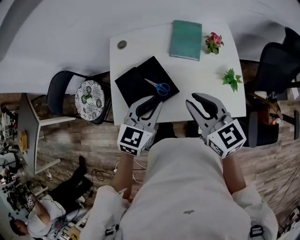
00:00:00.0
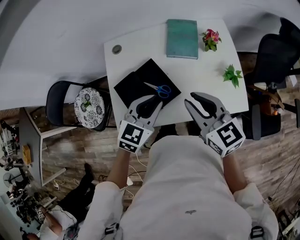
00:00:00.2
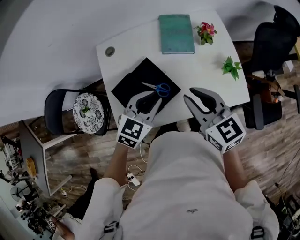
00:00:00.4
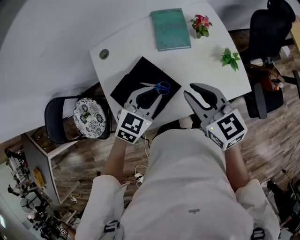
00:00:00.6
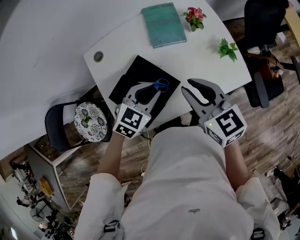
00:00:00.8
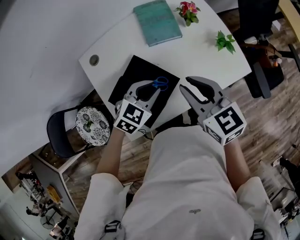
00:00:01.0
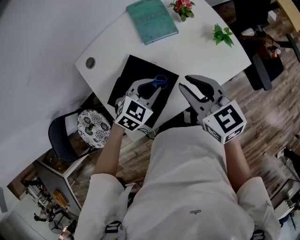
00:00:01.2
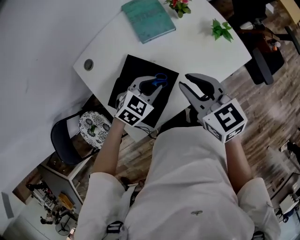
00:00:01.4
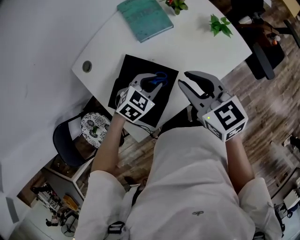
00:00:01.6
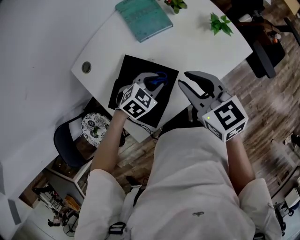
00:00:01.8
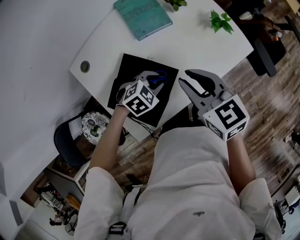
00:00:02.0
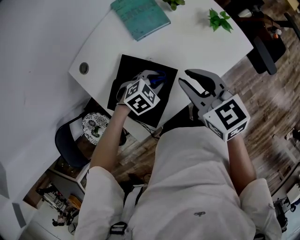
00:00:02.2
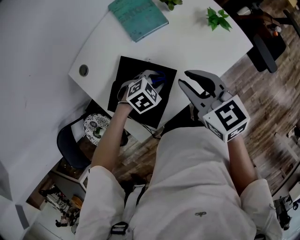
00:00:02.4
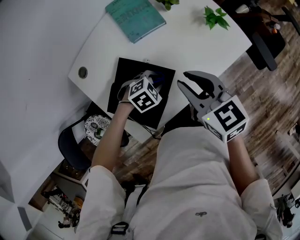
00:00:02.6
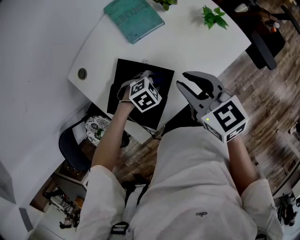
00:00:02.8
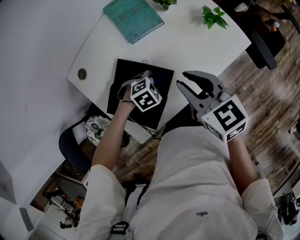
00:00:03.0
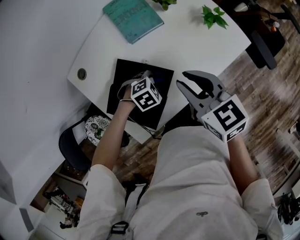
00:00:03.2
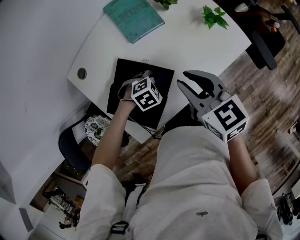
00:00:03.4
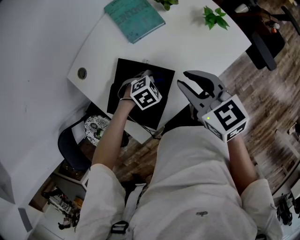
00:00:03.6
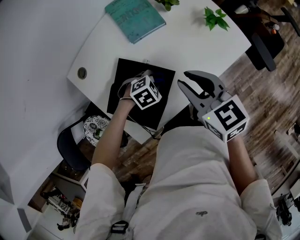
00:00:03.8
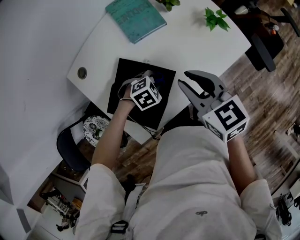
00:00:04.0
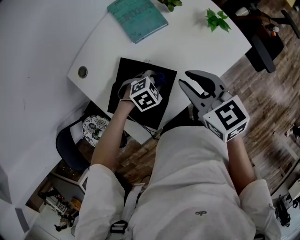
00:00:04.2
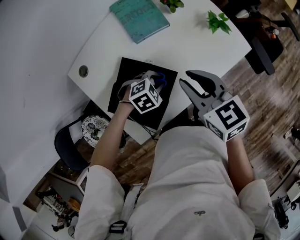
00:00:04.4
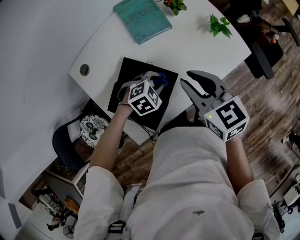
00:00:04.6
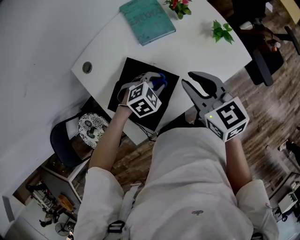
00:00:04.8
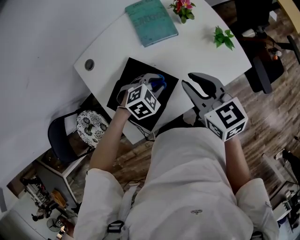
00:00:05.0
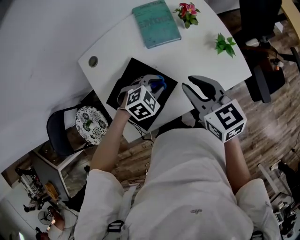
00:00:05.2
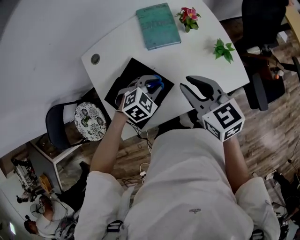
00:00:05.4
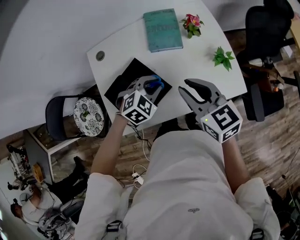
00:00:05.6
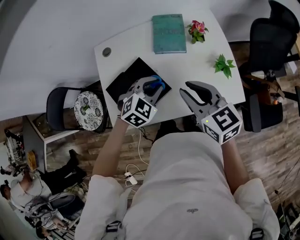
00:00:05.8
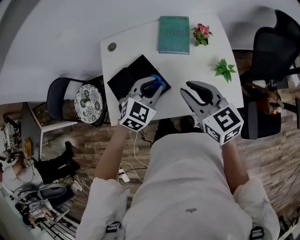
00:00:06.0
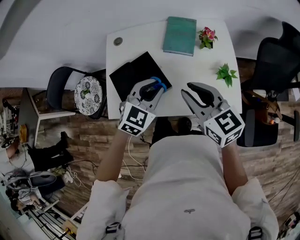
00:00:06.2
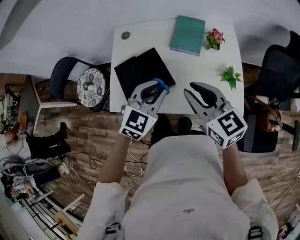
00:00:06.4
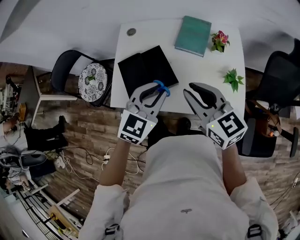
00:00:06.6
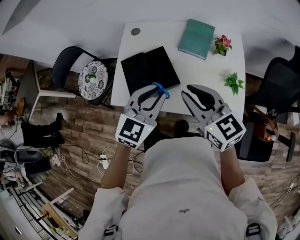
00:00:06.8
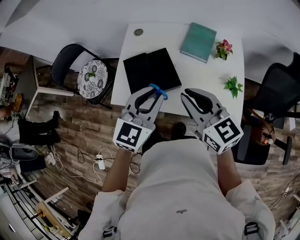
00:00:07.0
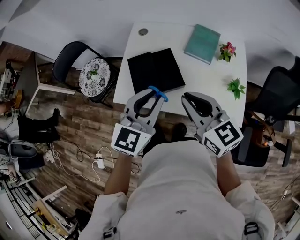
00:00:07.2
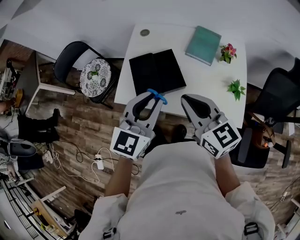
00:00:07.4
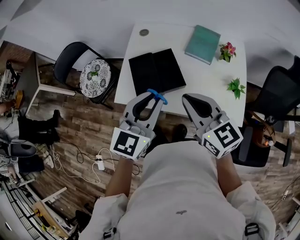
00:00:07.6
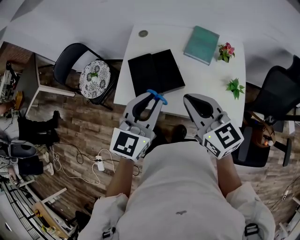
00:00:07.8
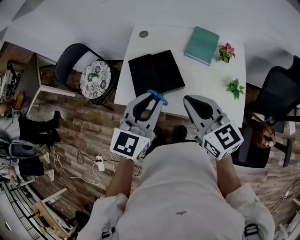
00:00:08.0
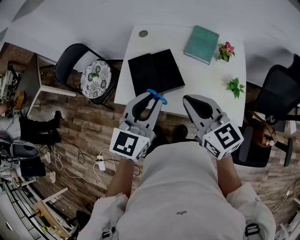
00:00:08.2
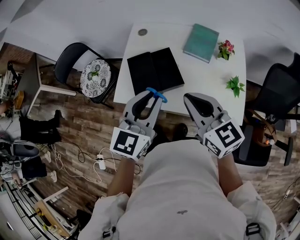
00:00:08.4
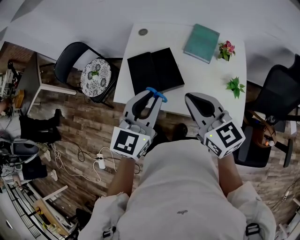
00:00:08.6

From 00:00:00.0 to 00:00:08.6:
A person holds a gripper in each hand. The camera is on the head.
From 00:00:00.0 to 00:00:01.4: The left gripper is displaced downward by about 15 cm, and changes its angle by approximately 60 degrees; the right gripper is displaced downward by roughly 5 cm, and rotates approximately 30 degrees.
From 00:00:01.4 to 00:00:02.8: The left gripper travels downward by approximately 10 cm, and turns by about 30 degrees.
From 00:00:02.8 to 00:00:04.4: There are only small adjustments of the grippers.
From 00:00:04.4 to 00:00:05.8: The right gripper heads upward, covering about 5 cm, and swivels about 30 degrees. Meanwhile the left gripper travels upward by about 15 cm, and turns by some 50 degrees.
From 00:00:05.8 to 00:00:07.2: The left gripper shifts some 20 cm upward, backward and to the left, and tilts its fingers some 30 degrees upward, while the right gripper goes about 10 cm backward, to the left and upward, and rotates approximately 20 degrees.
From 00:00:07.2 to 00:00:08.6: The grippers move only a little.

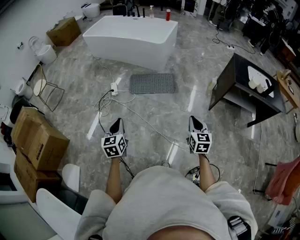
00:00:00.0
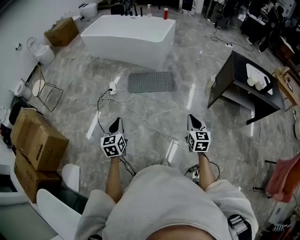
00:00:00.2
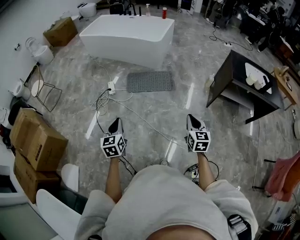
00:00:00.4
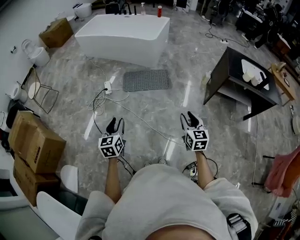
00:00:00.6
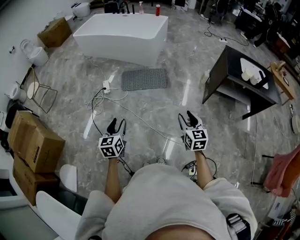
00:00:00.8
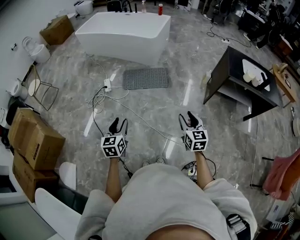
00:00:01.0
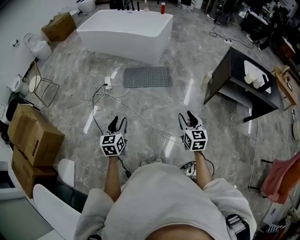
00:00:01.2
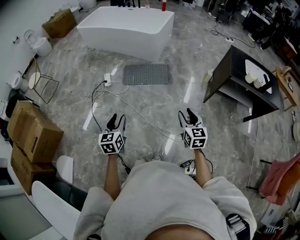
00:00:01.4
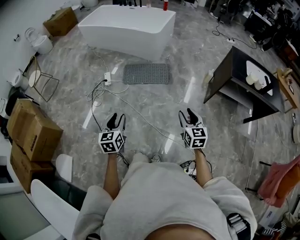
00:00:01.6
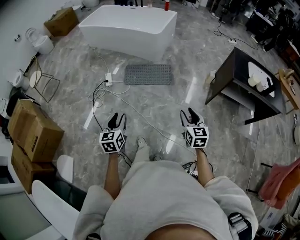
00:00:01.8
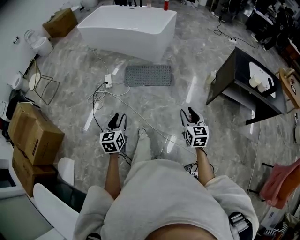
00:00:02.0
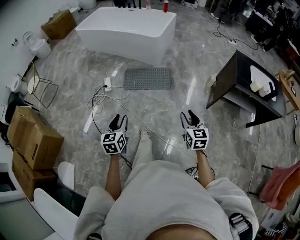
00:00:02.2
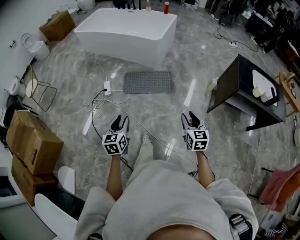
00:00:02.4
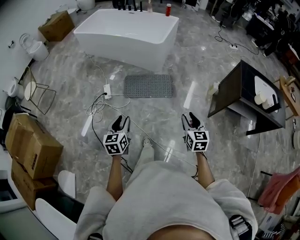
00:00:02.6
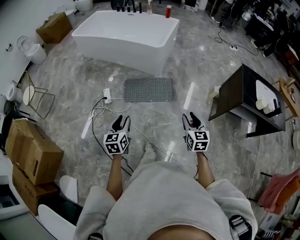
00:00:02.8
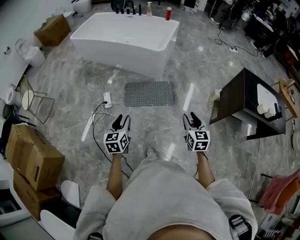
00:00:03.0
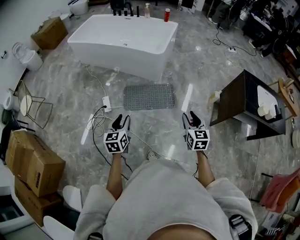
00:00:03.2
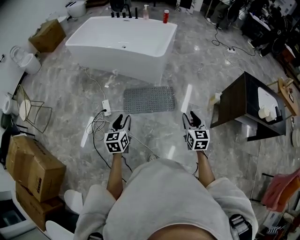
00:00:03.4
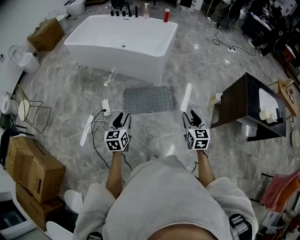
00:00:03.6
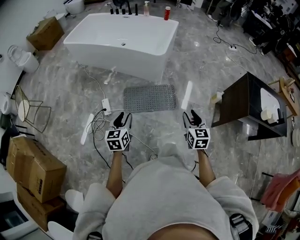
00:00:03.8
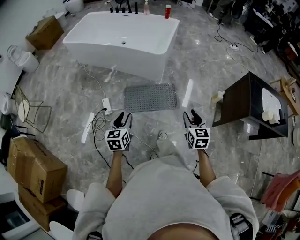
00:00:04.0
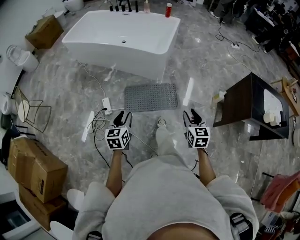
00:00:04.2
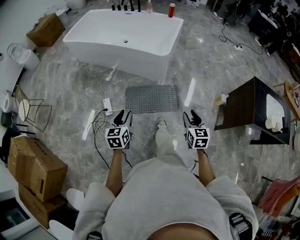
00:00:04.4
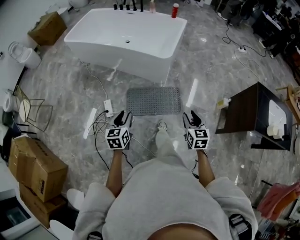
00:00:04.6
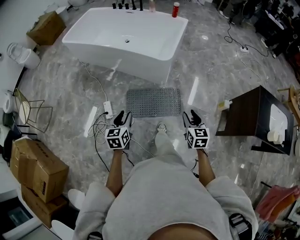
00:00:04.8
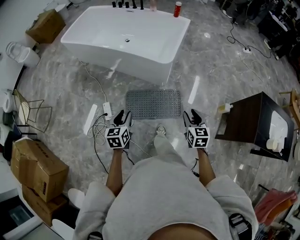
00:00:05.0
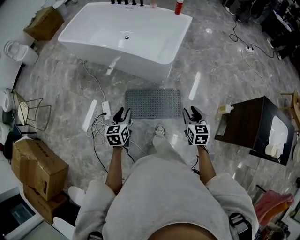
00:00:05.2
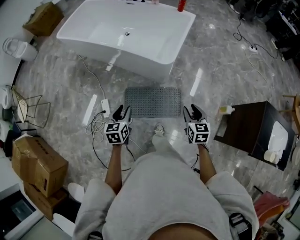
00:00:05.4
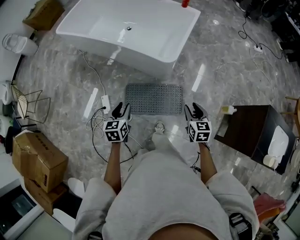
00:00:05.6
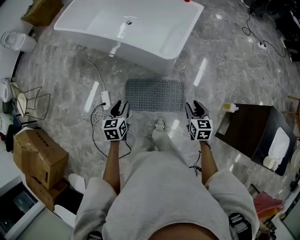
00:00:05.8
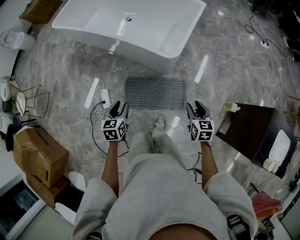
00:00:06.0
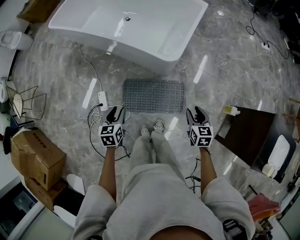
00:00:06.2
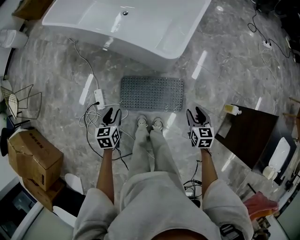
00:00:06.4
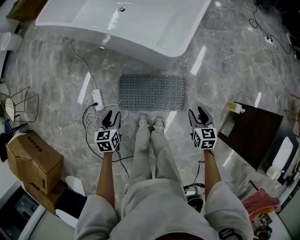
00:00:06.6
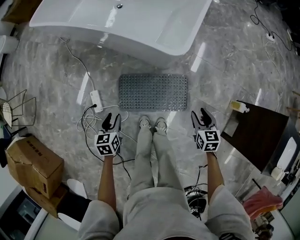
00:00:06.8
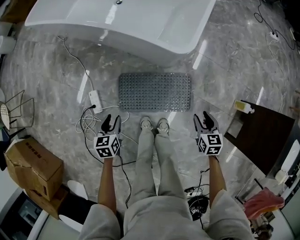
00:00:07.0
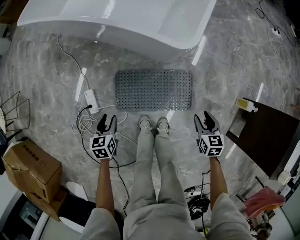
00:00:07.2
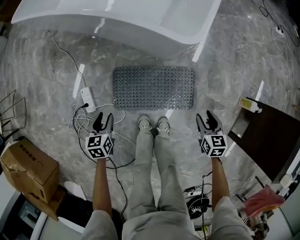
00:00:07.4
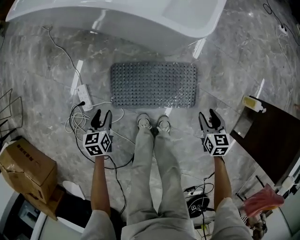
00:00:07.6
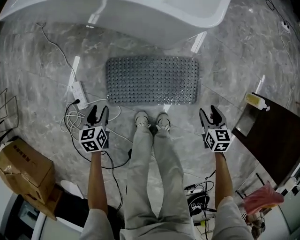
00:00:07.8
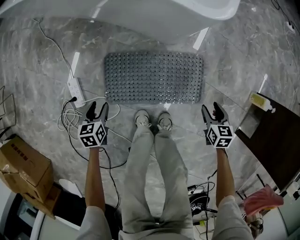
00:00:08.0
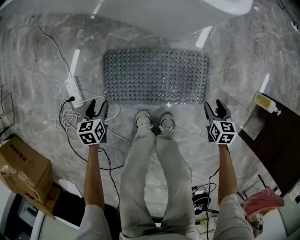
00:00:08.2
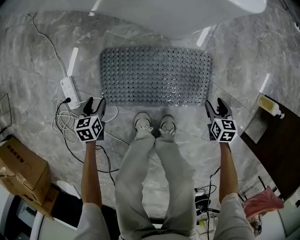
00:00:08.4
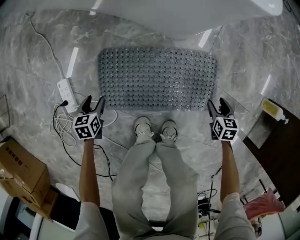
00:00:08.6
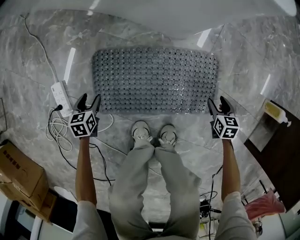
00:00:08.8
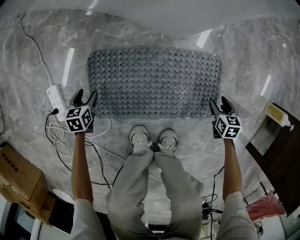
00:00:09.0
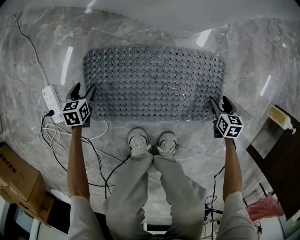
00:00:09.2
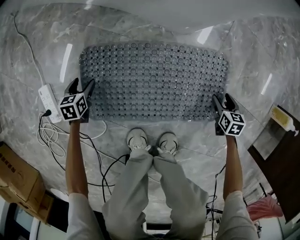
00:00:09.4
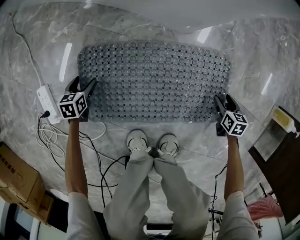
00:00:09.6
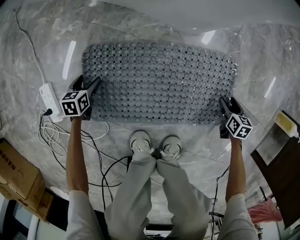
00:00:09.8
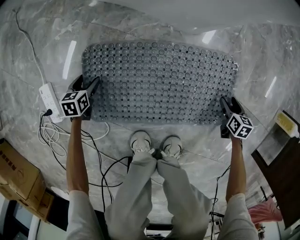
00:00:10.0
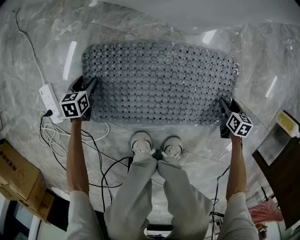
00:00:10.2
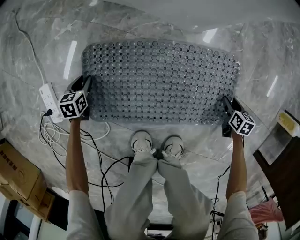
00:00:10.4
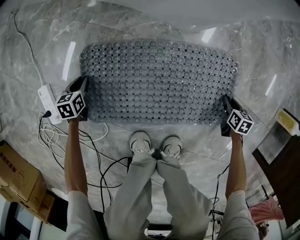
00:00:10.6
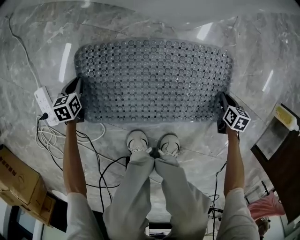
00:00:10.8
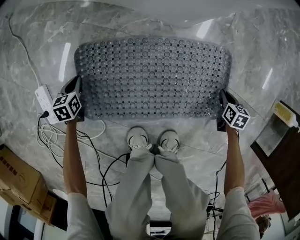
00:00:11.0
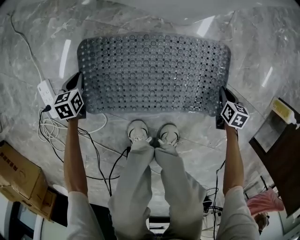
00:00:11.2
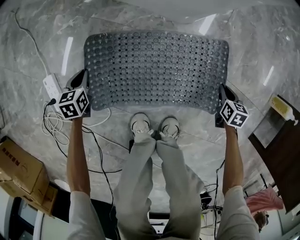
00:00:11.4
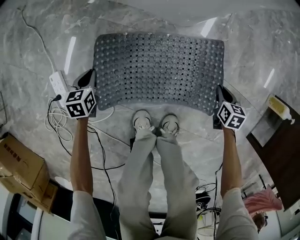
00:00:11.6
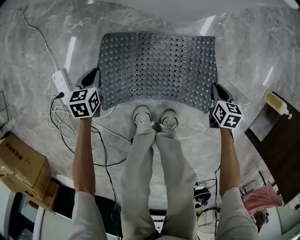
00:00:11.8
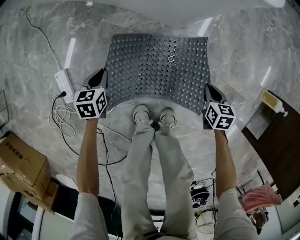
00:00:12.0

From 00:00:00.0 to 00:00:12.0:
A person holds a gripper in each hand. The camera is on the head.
From 00:00:00.0 to 00:00:01.6: The right gripper opens. Meanwhile the left gripper moves to the right, approximately 10 cm, and opens up.
From 00:00:01.6 to 00:00:03.0: Both grippers travel together forward, approximately 30 cm.
From 00:00:03.0 to 00:00:04.4: Both grippers travel together forward, about 20 cm.
From 00:00:04.4 to 00:00:06.0: The grippers both shift forward by approximately 30 cm.
From 00:00:06.0 to 00:00:07.6: Both grippers travel together downward, about 35 cm.
From 00:00:07.6 to 00:00:09.0: Both grippers move downward, some 35 cm.
From 00:00:09.0 to 00:00:10.4: The right gripper goes approximately 10 cm downward and to the right. Meanwhile the left gripper goes roughly 10 cm downward, and closes.
From 00:00:10.4 to 00:00:12.0: The right gripper moves upward and to the left, some 25 cm, and closes. The left gripper shifts about 25 cm upward and to the right.

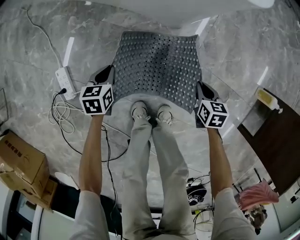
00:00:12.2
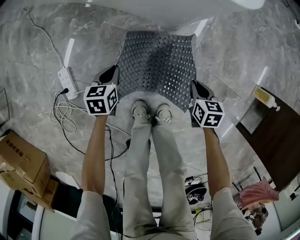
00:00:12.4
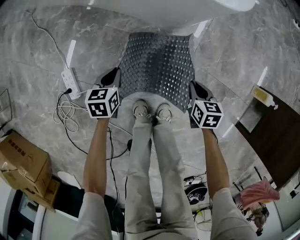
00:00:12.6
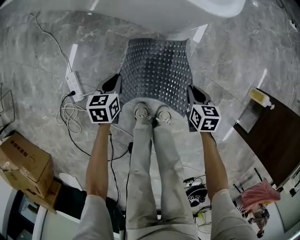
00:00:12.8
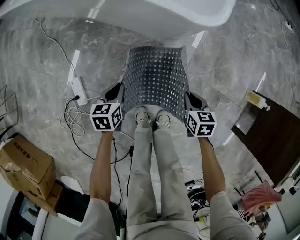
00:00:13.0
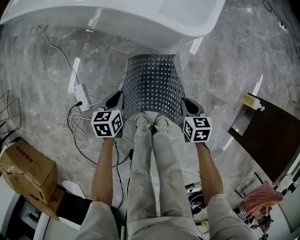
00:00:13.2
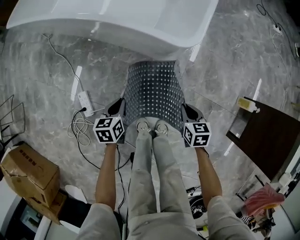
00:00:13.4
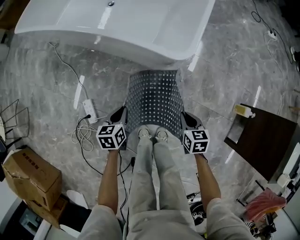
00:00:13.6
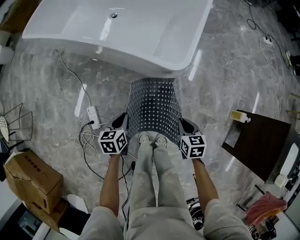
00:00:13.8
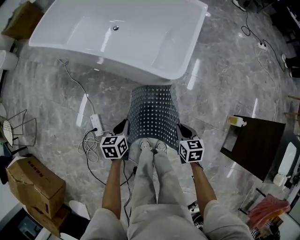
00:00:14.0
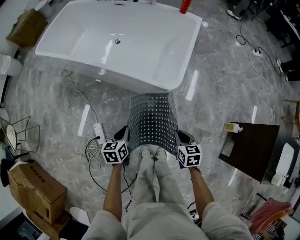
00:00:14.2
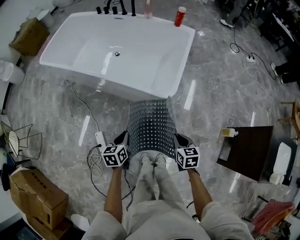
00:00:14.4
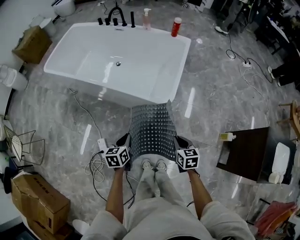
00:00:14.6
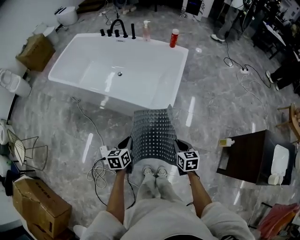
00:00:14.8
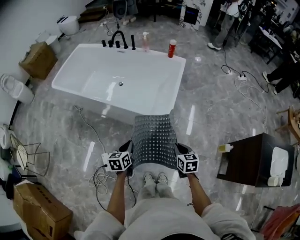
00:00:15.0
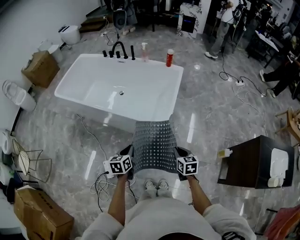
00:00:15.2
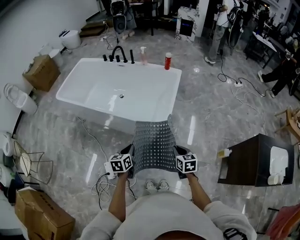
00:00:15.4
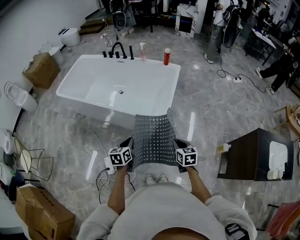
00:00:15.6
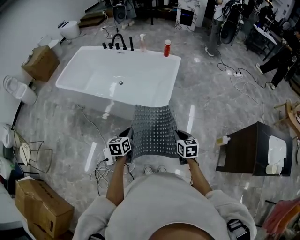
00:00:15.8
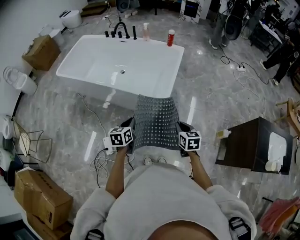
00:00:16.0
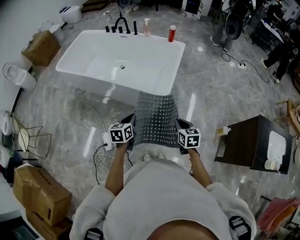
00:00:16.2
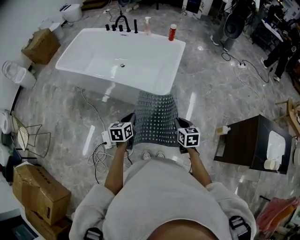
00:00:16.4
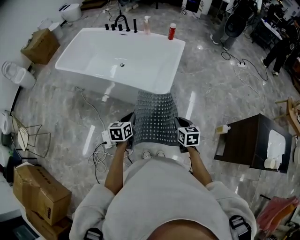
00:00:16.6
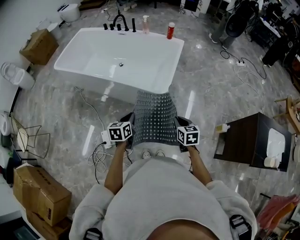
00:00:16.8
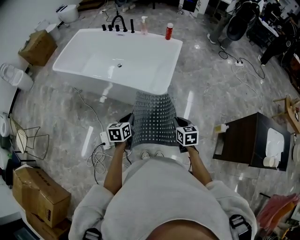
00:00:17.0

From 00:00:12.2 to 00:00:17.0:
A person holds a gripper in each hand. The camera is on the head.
From 00:00:12.2 to 00:00:13.8: Both grippers move upward, roughly 35 cm.
From 00:00:13.8 to 00:00:15.4: The grippers both shift upward by approximately 30 cm.
From 00:00:15.4 to 00:00:17.0: The grippers make only small movements.
